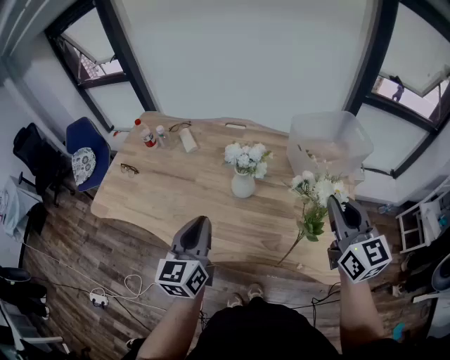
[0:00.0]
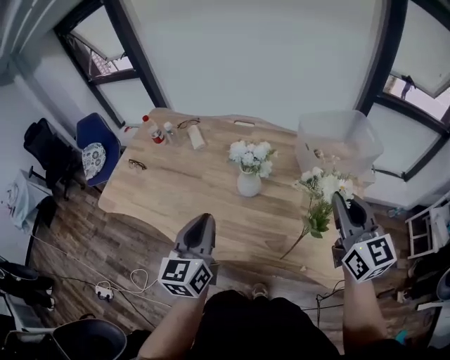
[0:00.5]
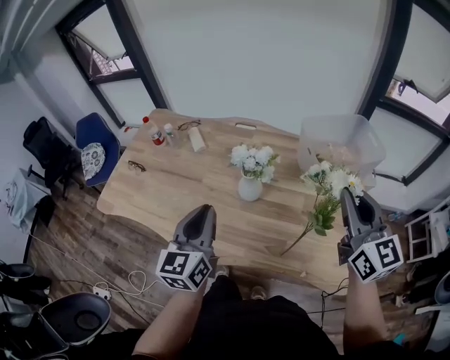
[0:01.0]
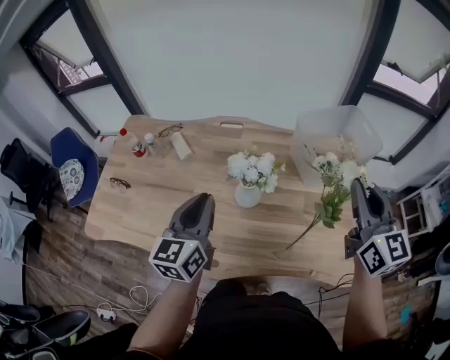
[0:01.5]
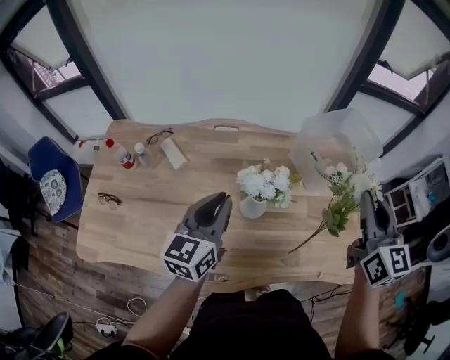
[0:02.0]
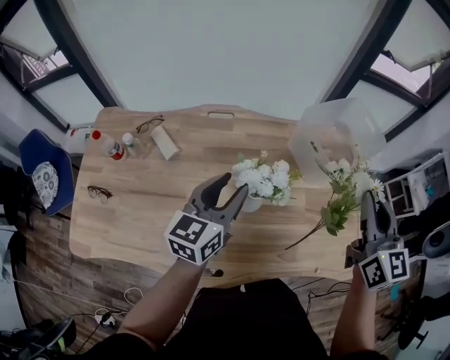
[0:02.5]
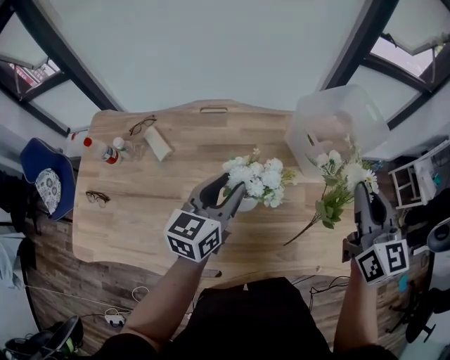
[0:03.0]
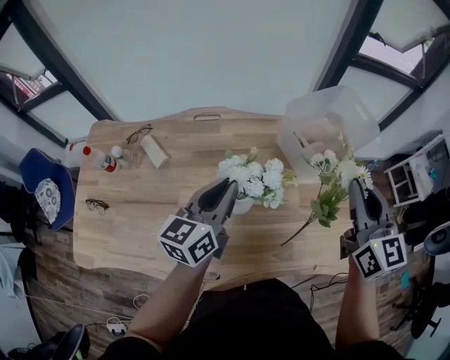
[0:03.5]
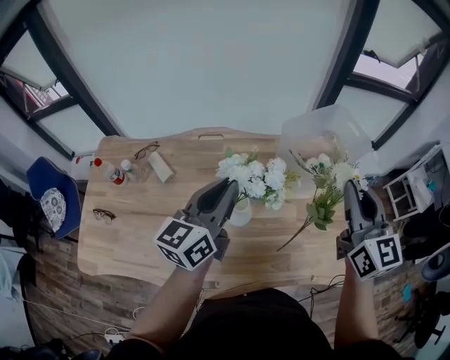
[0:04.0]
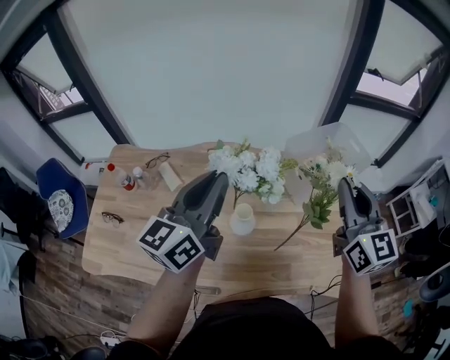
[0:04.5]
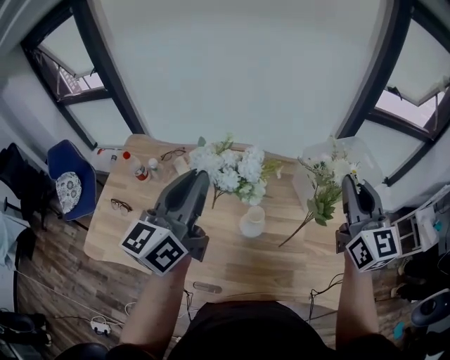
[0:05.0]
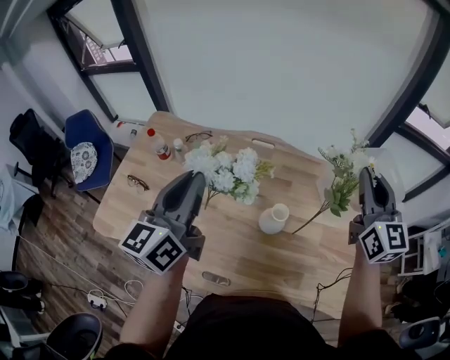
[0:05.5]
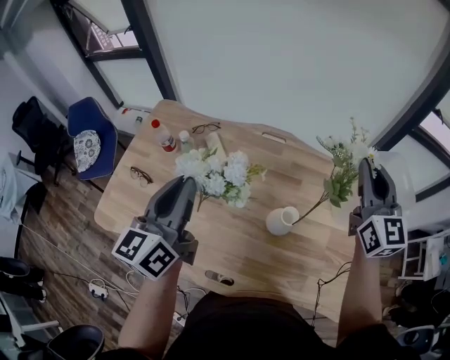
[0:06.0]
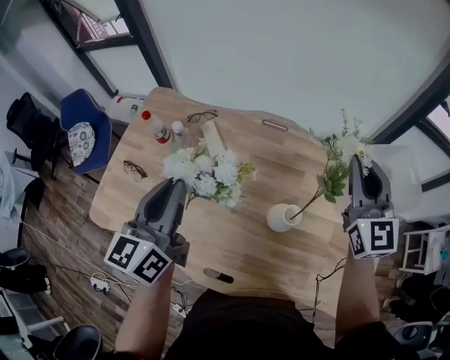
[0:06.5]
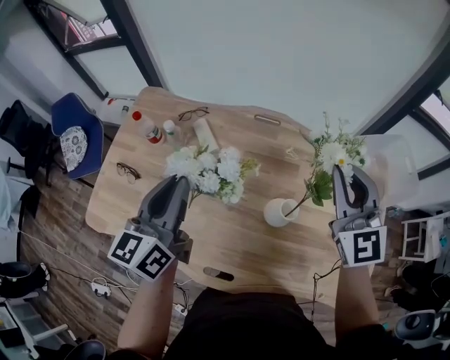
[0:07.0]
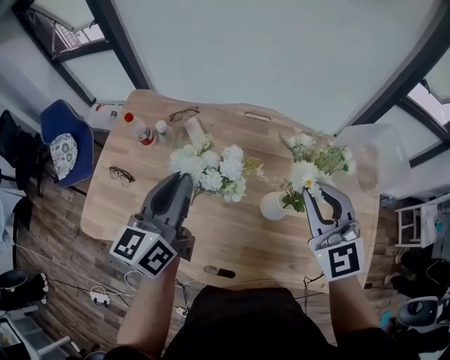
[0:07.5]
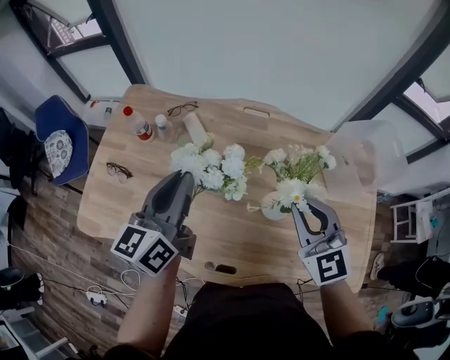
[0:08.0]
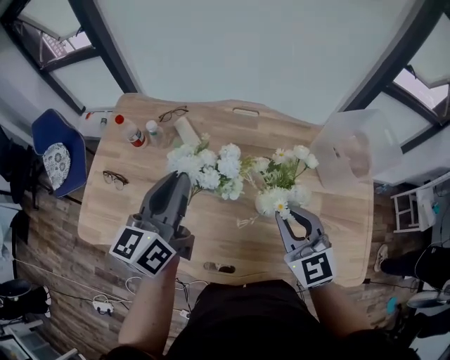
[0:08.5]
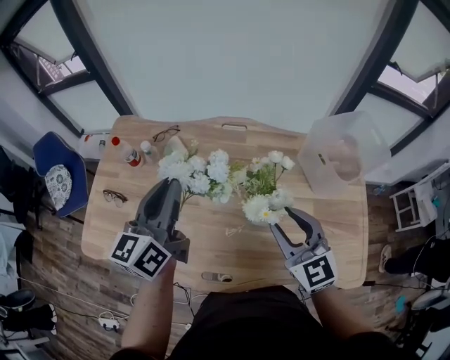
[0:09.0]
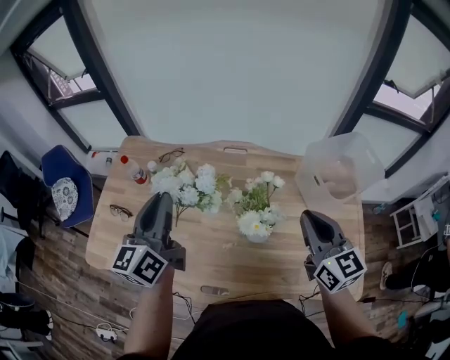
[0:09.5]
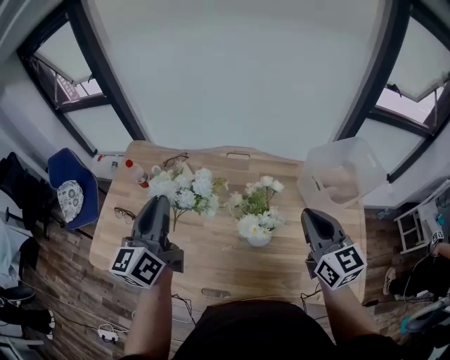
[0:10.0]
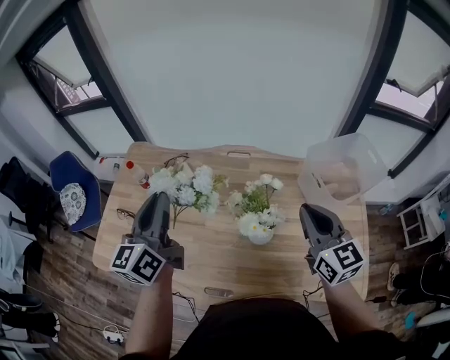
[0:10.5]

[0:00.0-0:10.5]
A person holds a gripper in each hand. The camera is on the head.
0.0 to 2.0 s: The left gripper moves about 20 cm, and swivels roughly 30 degrees. The right gripper ends up some 10 cm from where it was, and changes its angle by approximately 20 degrees.
2.0 to 4.0 s: The left gripper is displaced forward, to the right and upward by roughly 10 cm, and opens, then closes once more.
4.0 to 6.5 s: The right gripper is displaced to the left and forward by about 20 cm, and rotates about 20 degrees. The left gripper is displaced to the left by approximately 25 cm, and rotates about 30 degrees.
6.5 to 8.5 s: The right gripper is displaced backward, downward and to the left by some 25 cm.
8.5 to 10.5 s: The right gripper moves to the right and upward, about 15 cm, rotates approximately 20 degrees, and opens, then closes again, while the left gripper is displaced upward by about 5 cm.

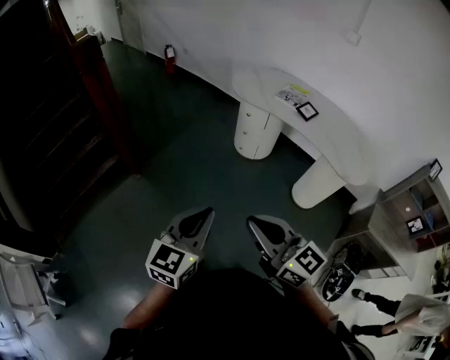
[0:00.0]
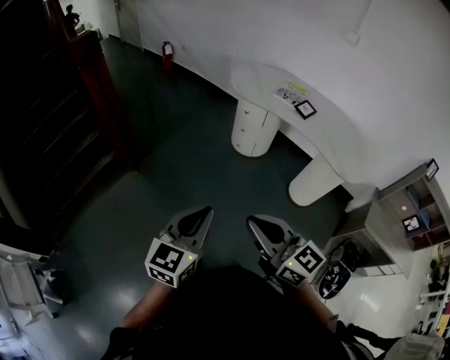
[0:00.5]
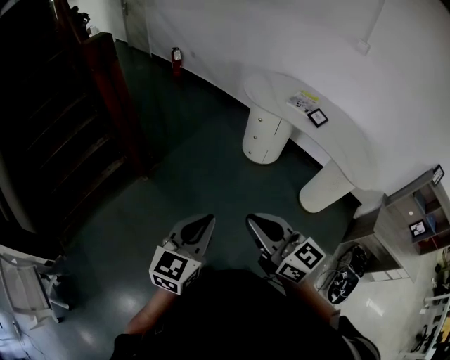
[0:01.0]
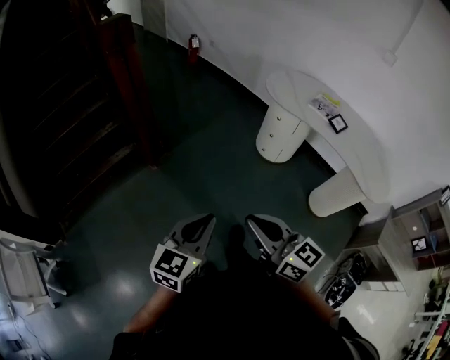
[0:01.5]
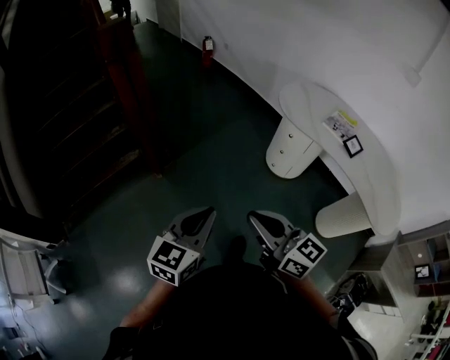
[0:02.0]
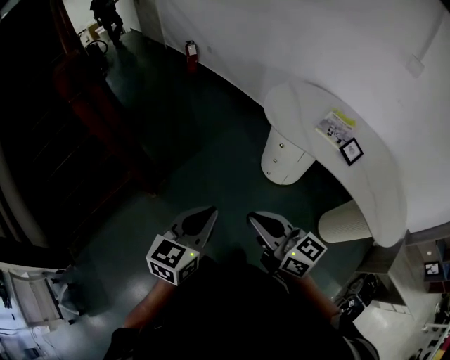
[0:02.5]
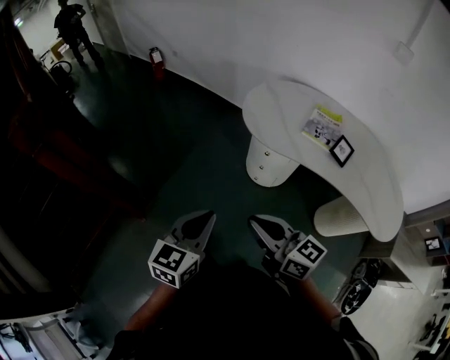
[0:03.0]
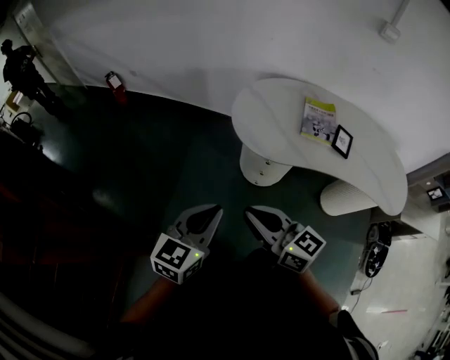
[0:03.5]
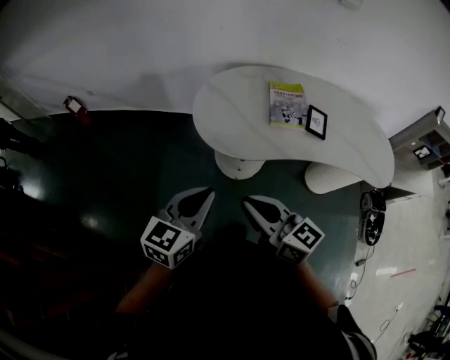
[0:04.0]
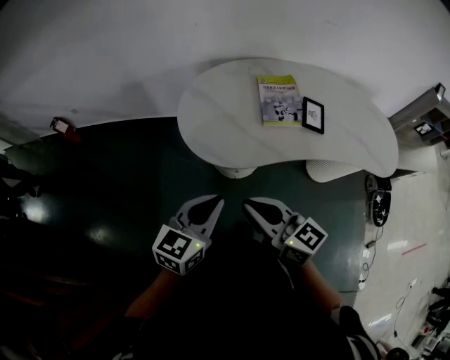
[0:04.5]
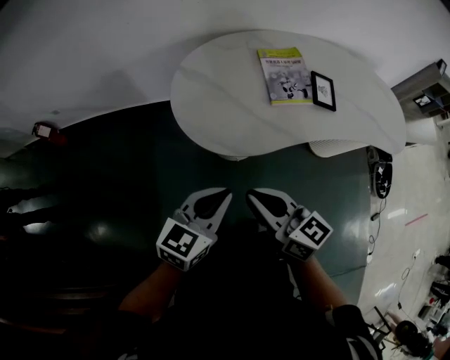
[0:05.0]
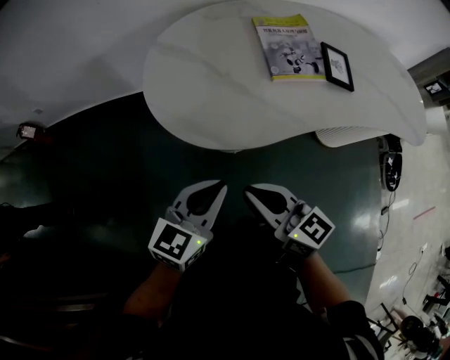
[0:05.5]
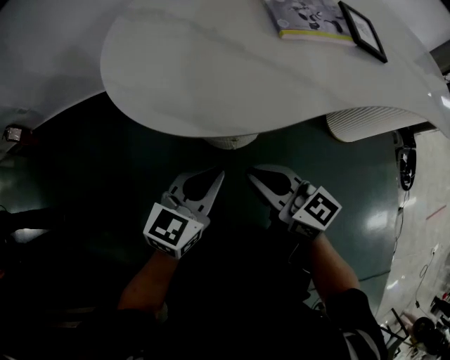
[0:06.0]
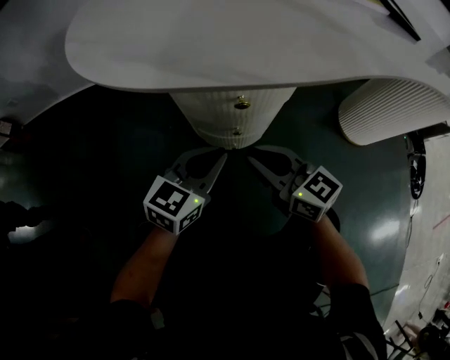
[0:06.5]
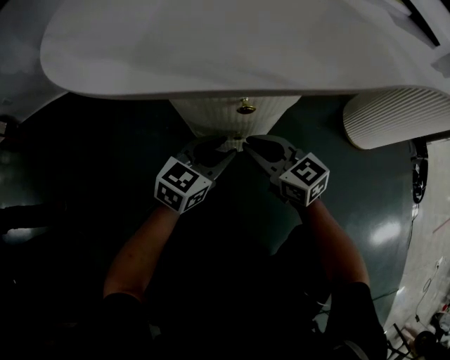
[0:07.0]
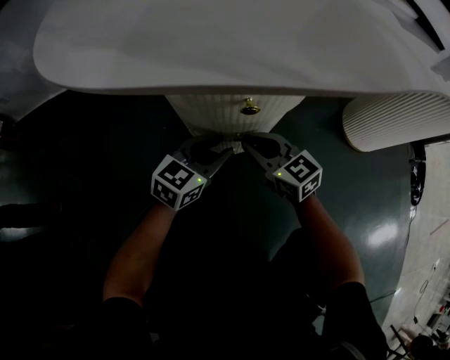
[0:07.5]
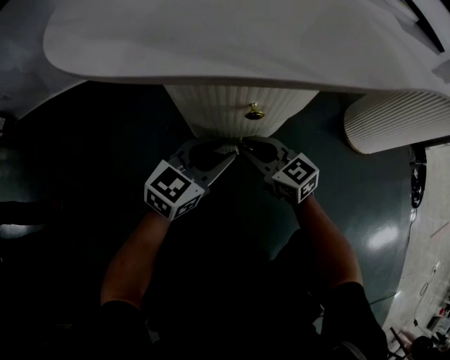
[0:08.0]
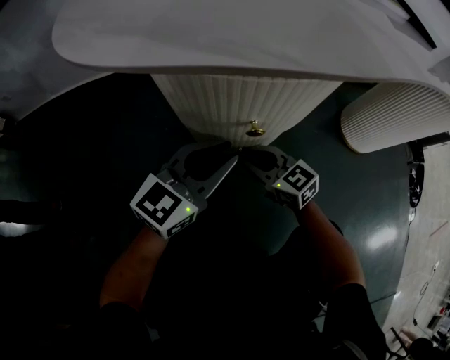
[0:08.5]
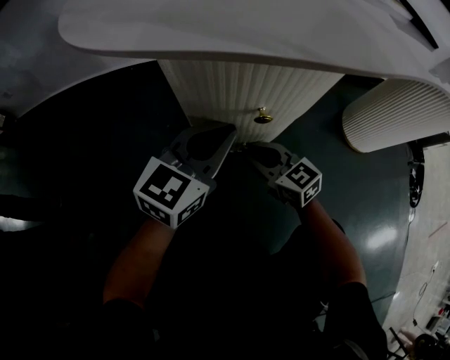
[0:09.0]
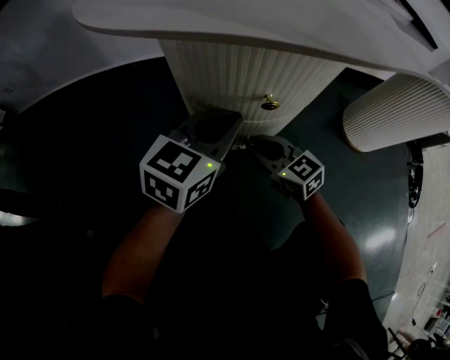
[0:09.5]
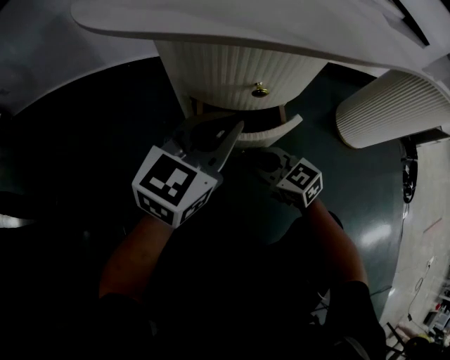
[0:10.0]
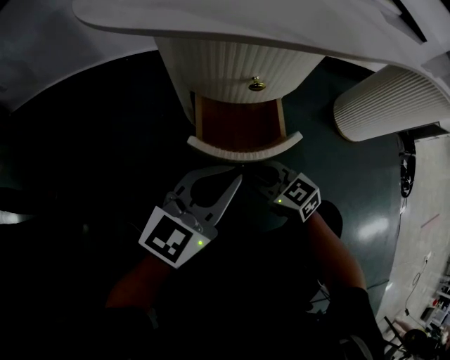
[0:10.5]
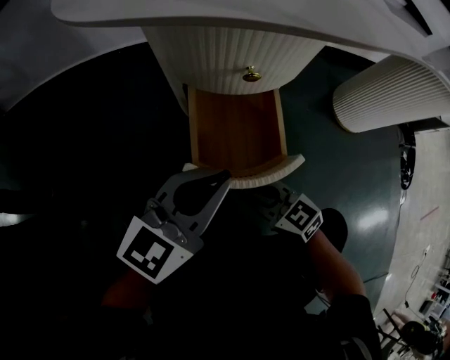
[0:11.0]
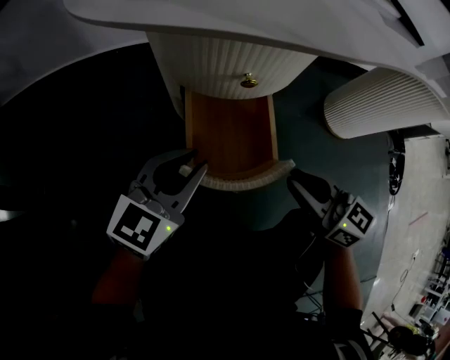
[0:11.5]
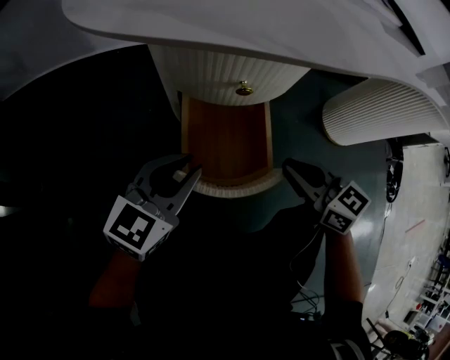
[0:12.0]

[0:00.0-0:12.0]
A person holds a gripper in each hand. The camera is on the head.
0.0 to 2.0 s: The two grippers go approximately 25 cm forward and to the left.
2.0 to 4.0 s: Both grippers are carried some 50 cm. The left gripper turns by roughly 50 degrees. The right gripper turns by some 40 degrees.
4.0 to 6.0 s: The grippers both shift downward by roughly 40 cm.
6.0 to 8.0 s: The left gripper shifts approximately 20 cm downward, and opens its fingers. Meanwhile the right gripper goes about 30 cm downward and forward.
8.0 to 10.0 s: The left gripper travels upward by about 10 cm, and closes. The right gripper travels backward by some 5 cm.
10.0 to 12.0 s: The right gripper travels upward and to the right by approximately 15 cm, while the left gripper is displaced backward and to the left by approximately 10 cm.

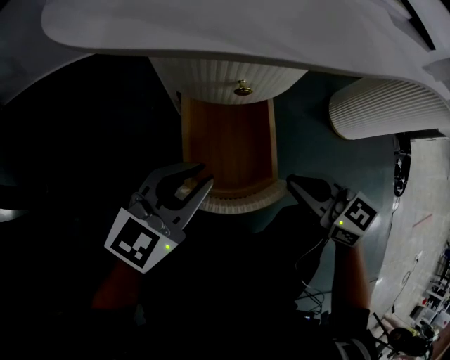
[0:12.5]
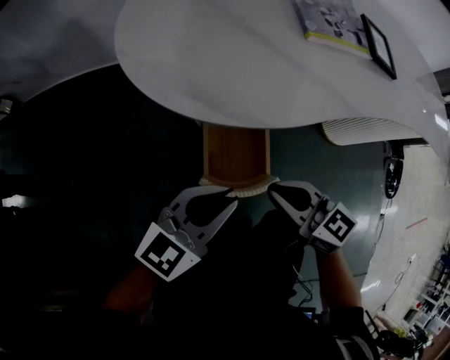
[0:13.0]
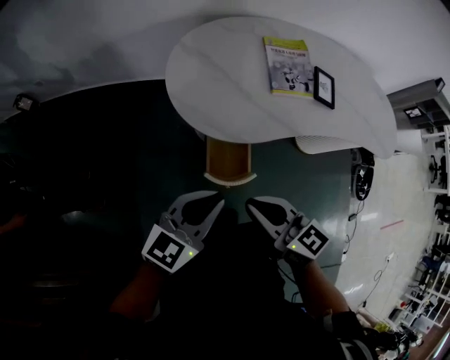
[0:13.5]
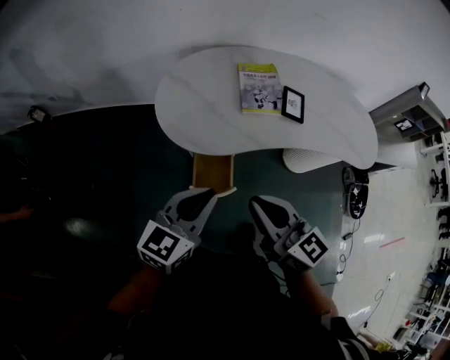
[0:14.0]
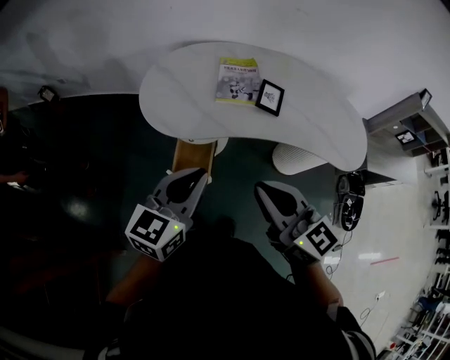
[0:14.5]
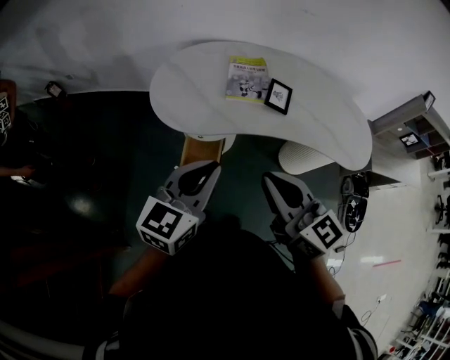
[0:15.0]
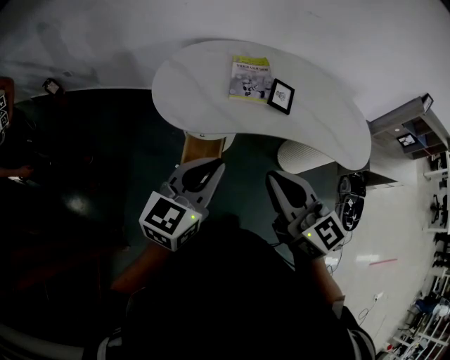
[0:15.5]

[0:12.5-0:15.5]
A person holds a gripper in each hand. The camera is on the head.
12.5 to 14.0 s: Both grippers move upward, roughly 60 cm. The right gripper turns by some 20 degrees.
14.0 to 15.5 s: Both grippers move to the right and upward, some 15 cm.

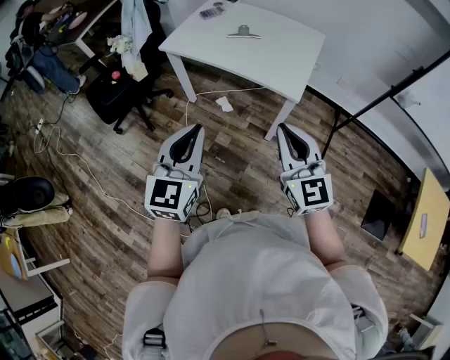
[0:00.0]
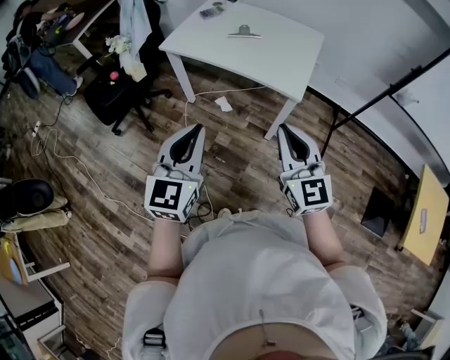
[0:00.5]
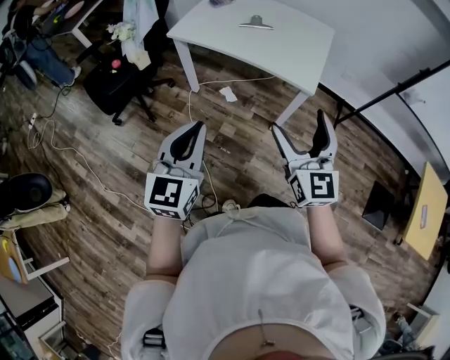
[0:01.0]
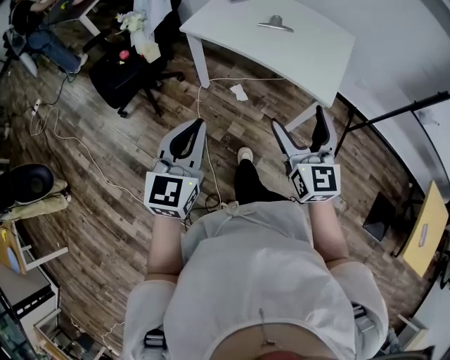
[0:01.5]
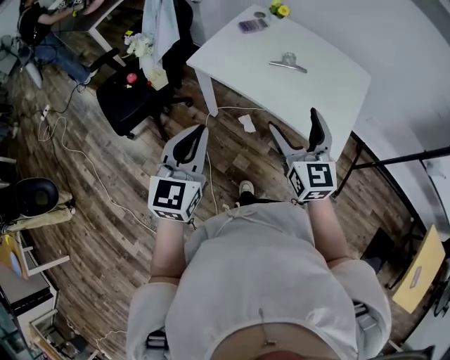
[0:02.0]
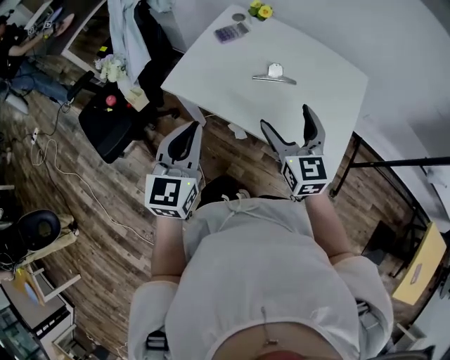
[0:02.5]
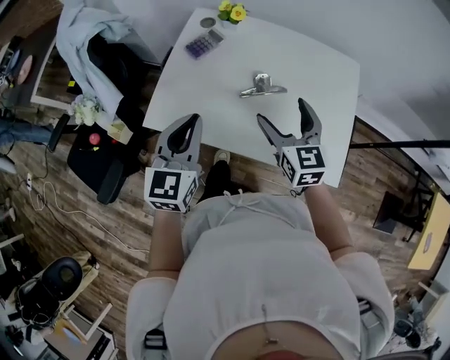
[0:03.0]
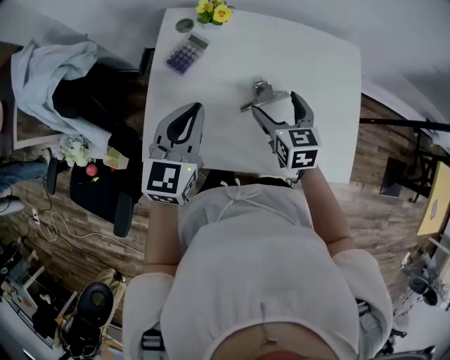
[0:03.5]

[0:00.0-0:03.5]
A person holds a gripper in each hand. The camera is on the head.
0.0 to 2.0 s: The grippers both shift forward and to the left by some 30 cm. The right gripper opens up.
2.0 to 3.5 s: The right gripper changes place by roughly 40 cm, and swivels roughly 40 degrees; the left gripper changes place by about 50 cm, and swivels some 30 degrees.
